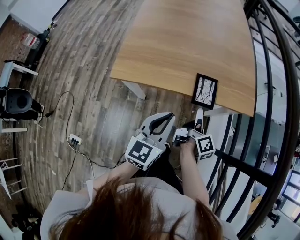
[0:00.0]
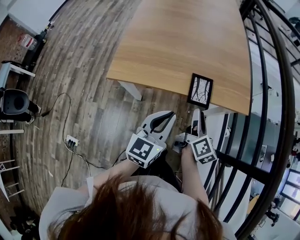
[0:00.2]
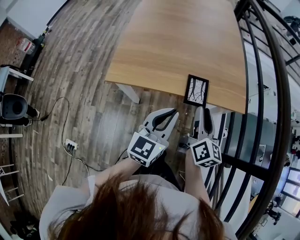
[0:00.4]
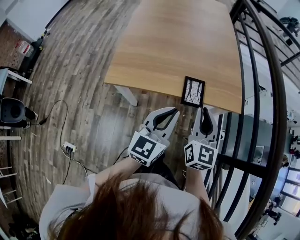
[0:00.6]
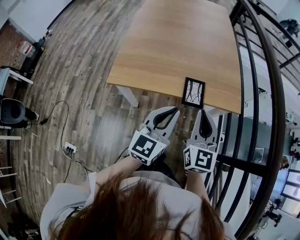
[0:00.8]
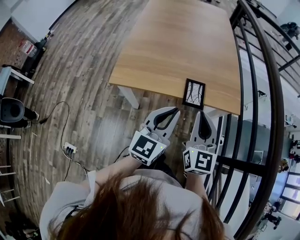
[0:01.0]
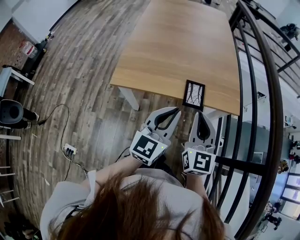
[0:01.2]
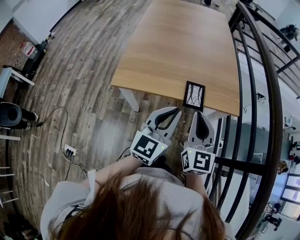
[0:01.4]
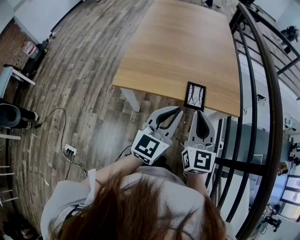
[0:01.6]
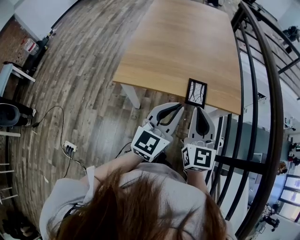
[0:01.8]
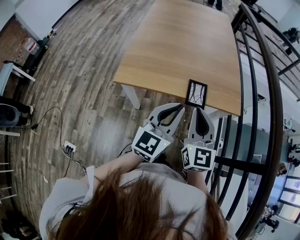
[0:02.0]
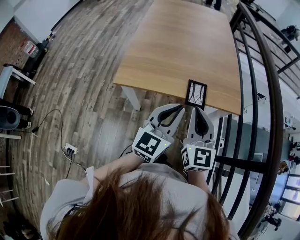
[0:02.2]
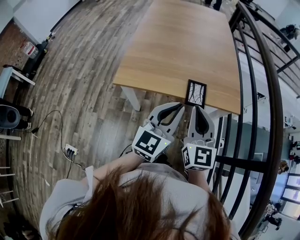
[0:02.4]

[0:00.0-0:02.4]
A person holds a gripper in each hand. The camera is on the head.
0:00.0 to 0:01.2: The right gripper travels upward by approximately 20 cm, rotates around the line of its fingers by some 80 degrees, counterclockwise from behind, and closes up, while the left gripper is displaced upward by some 10 cm.
0:01.2 to 0:02.4: The grippers move only a little.

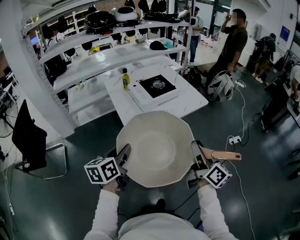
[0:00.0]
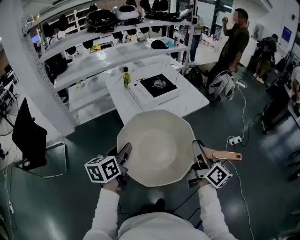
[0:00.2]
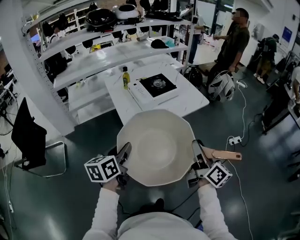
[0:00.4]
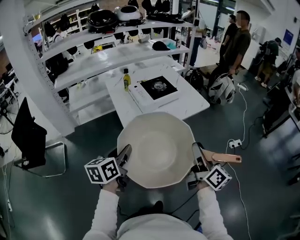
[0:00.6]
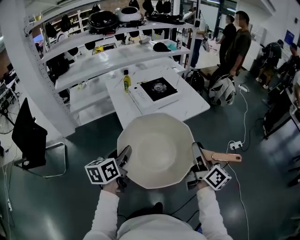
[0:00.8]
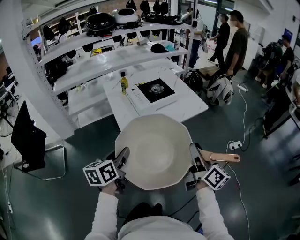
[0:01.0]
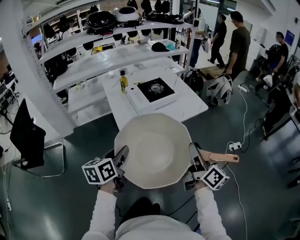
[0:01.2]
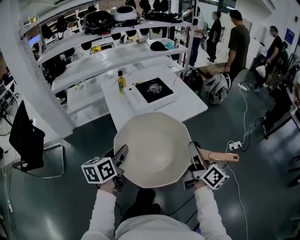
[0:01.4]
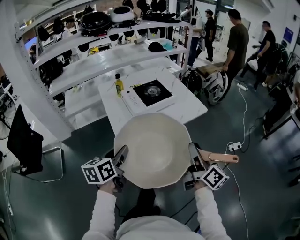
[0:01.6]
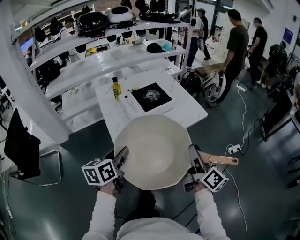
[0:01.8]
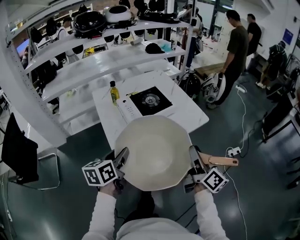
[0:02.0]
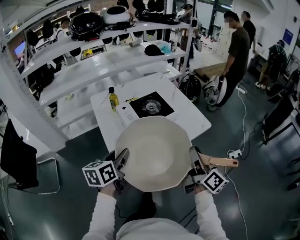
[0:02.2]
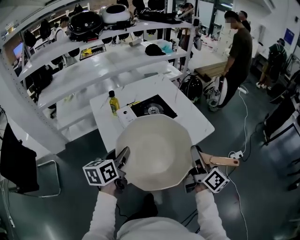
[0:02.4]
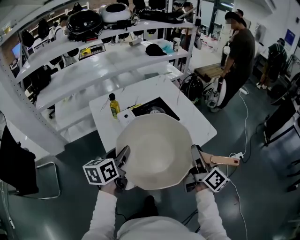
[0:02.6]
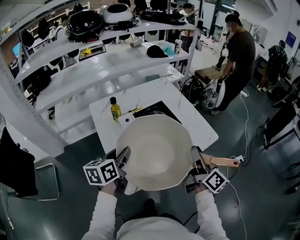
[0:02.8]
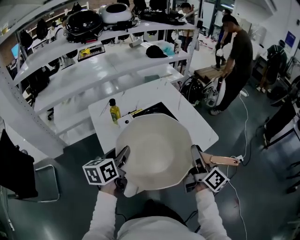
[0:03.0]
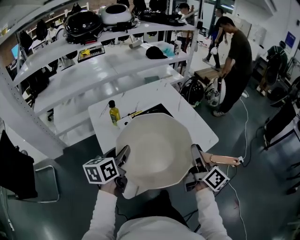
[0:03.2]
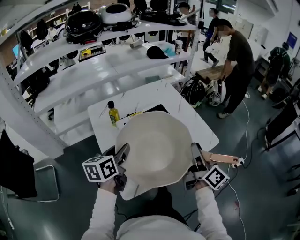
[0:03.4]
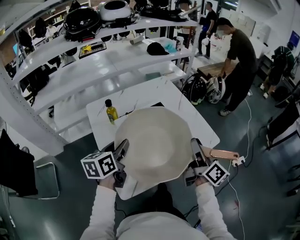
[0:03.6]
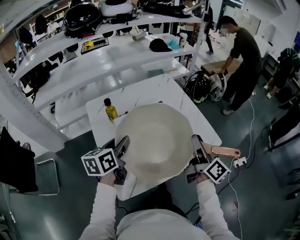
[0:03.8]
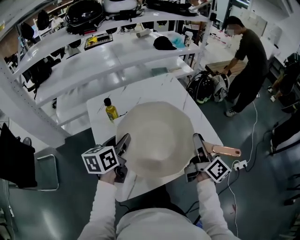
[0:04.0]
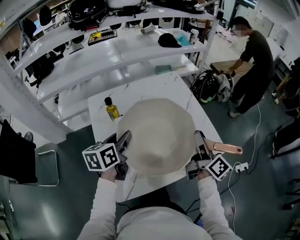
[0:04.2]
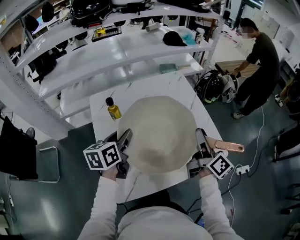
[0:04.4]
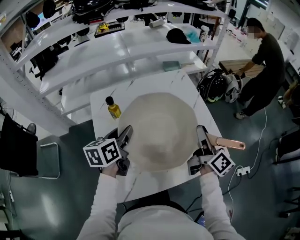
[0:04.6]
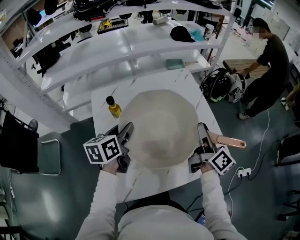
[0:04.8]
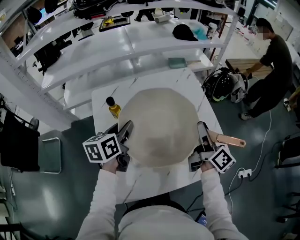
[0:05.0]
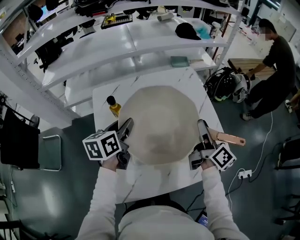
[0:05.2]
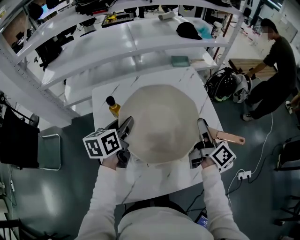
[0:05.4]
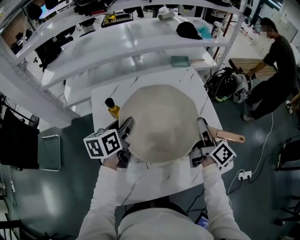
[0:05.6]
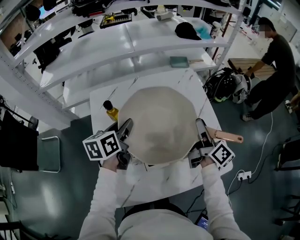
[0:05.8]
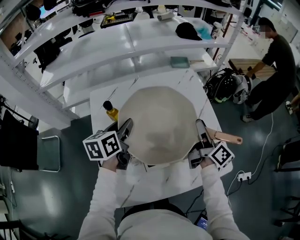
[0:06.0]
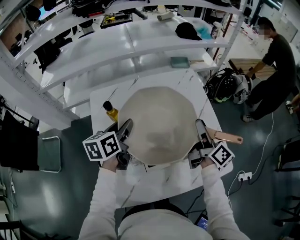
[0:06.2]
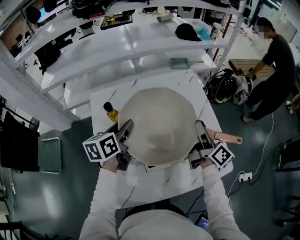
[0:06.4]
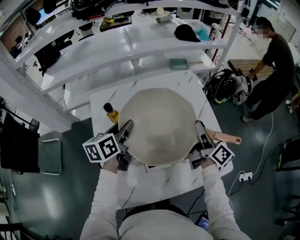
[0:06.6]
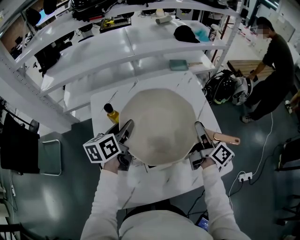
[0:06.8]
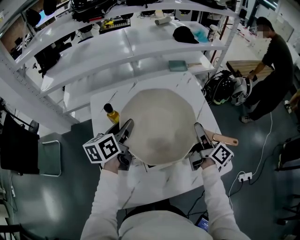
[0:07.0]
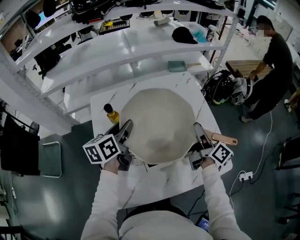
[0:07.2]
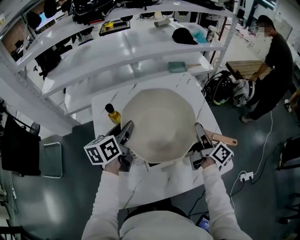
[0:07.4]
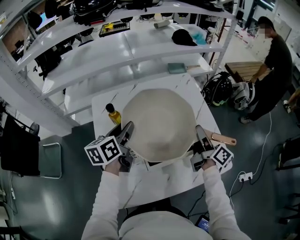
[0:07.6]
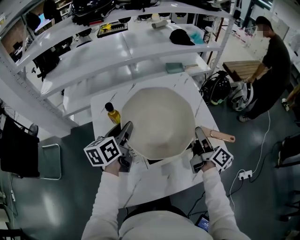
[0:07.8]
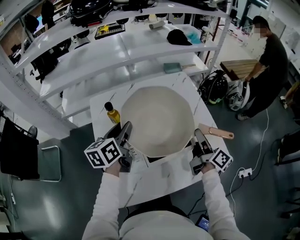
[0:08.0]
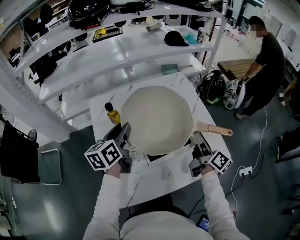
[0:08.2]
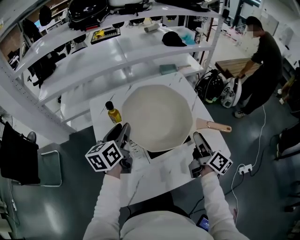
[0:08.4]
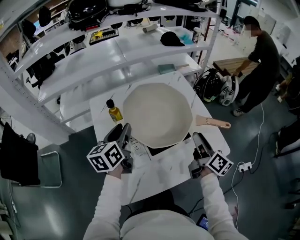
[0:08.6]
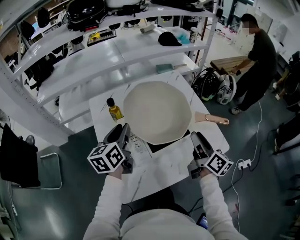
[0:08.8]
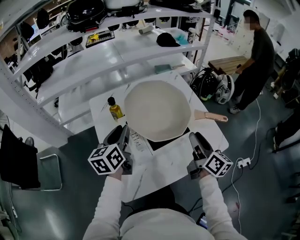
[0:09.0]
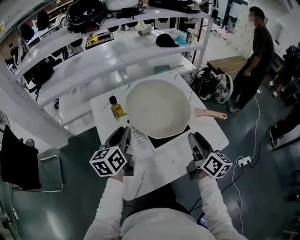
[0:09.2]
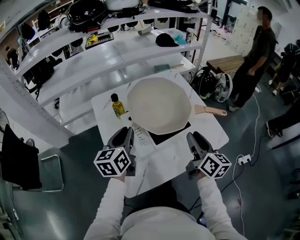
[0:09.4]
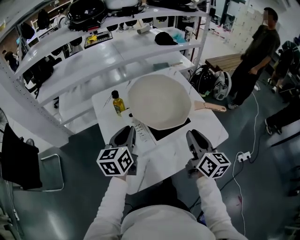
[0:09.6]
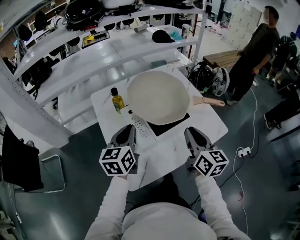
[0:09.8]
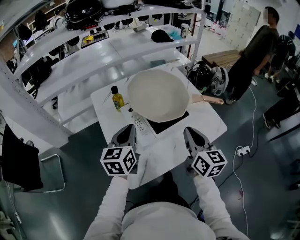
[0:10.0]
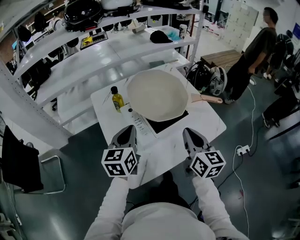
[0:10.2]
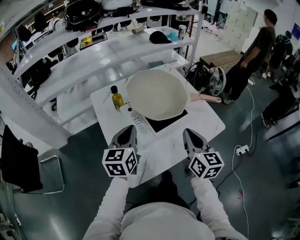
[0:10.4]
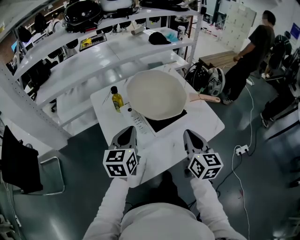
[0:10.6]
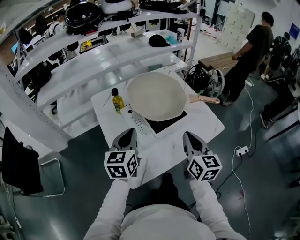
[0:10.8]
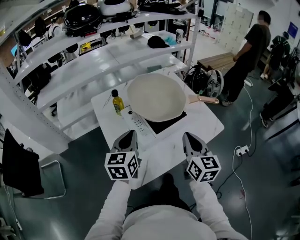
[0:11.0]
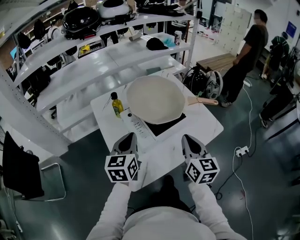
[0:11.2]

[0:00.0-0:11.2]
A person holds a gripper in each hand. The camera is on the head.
0:00.0 to 0:01.6: Both grippers move forward, roughly 10 cm.
0:01.6 to 0:03.2: The grippers both shift forward by about 30 cm.
0:03.2 to 0:04.8: The two grippers go roughly 20 cm forward.
0:04.8 to 0:06.4: The grippers both shift forward by approximately 5 cm.
0:06.4 to 0:08.0: The right gripper shifts some 5 cm backward.
0:08.0 to 0:09.6: The left gripper is displaced backward by about 10 cm, and closes up. The right gripper is displaced backward and to the left by roughly 20 cm, swivels approximately 40 degrees, and closes.
0:09.6 to 0:11.2: The two grippers go roughly 5 cm backward. The right gripper closes its fingers.

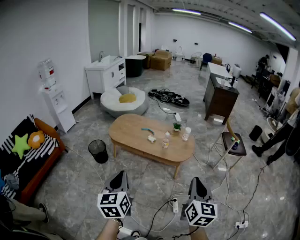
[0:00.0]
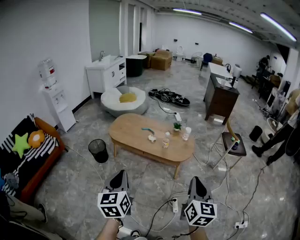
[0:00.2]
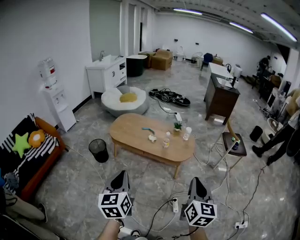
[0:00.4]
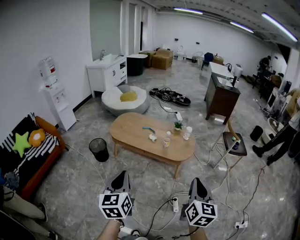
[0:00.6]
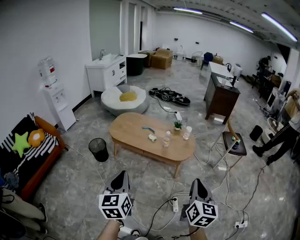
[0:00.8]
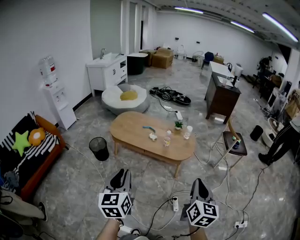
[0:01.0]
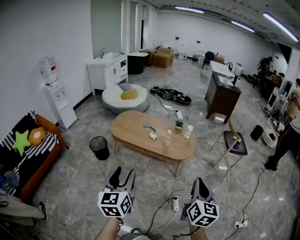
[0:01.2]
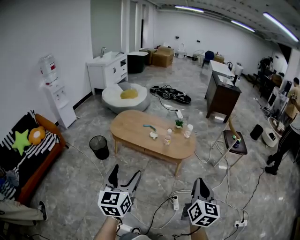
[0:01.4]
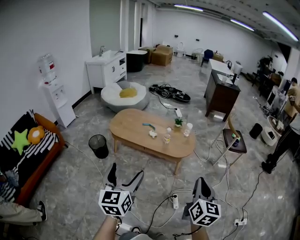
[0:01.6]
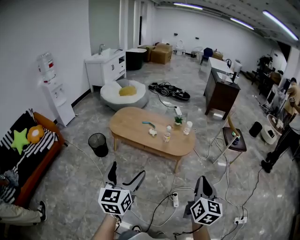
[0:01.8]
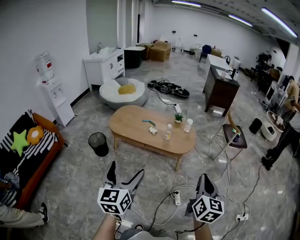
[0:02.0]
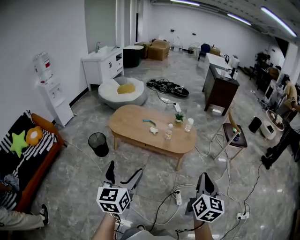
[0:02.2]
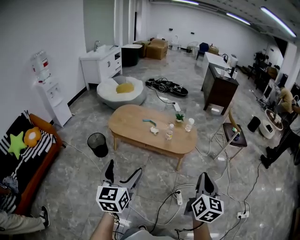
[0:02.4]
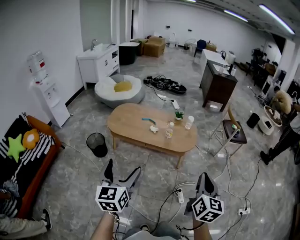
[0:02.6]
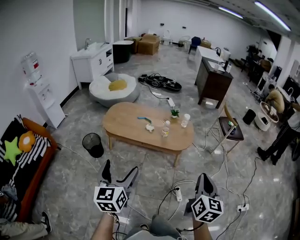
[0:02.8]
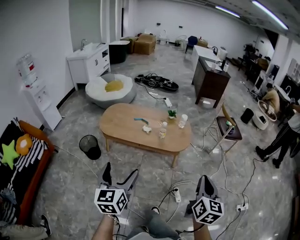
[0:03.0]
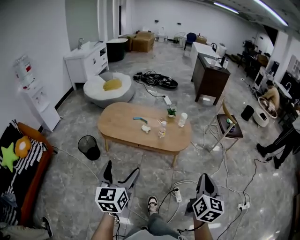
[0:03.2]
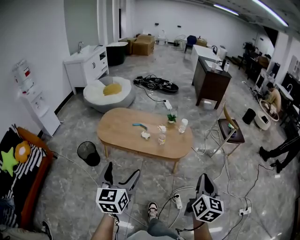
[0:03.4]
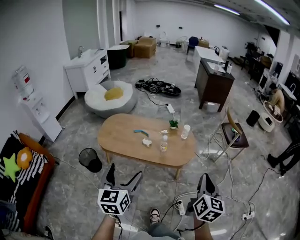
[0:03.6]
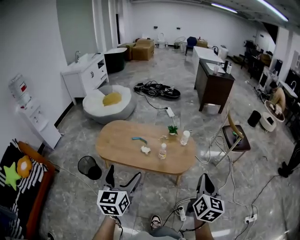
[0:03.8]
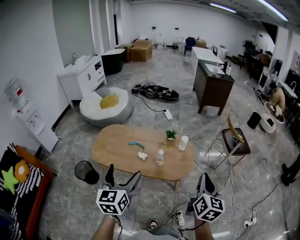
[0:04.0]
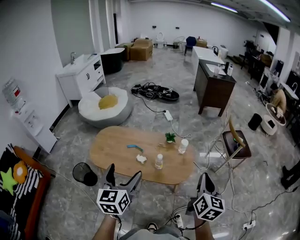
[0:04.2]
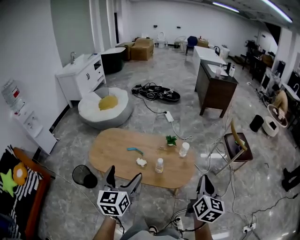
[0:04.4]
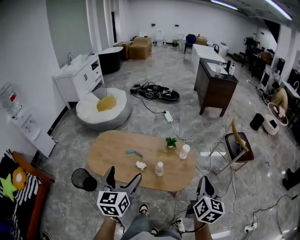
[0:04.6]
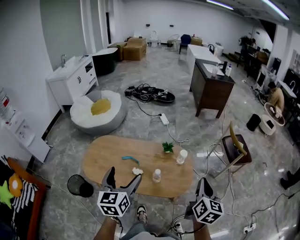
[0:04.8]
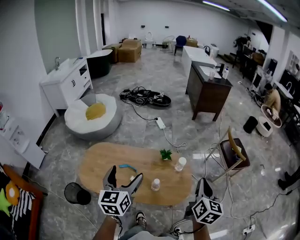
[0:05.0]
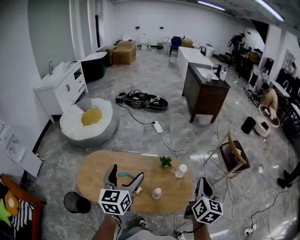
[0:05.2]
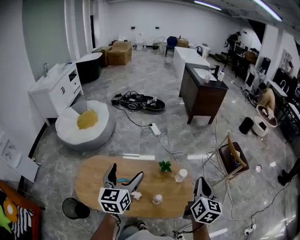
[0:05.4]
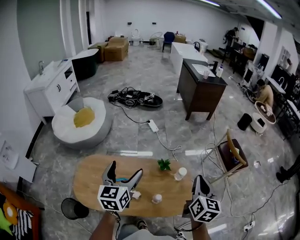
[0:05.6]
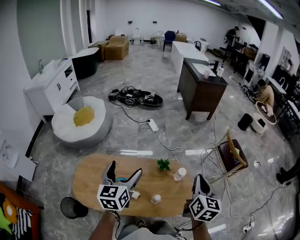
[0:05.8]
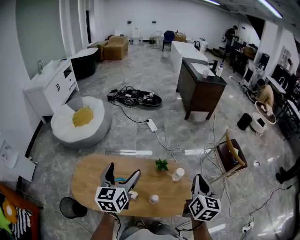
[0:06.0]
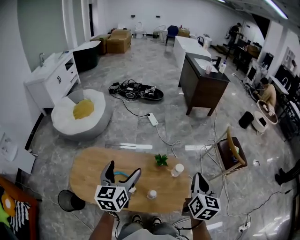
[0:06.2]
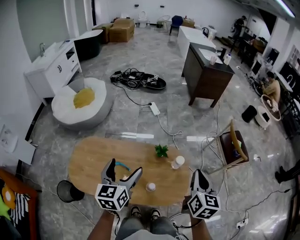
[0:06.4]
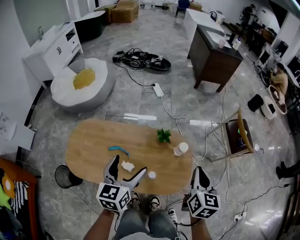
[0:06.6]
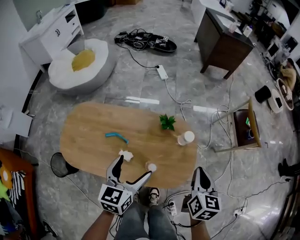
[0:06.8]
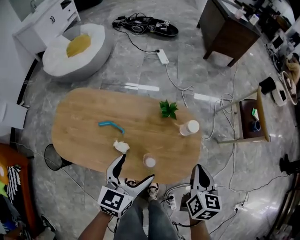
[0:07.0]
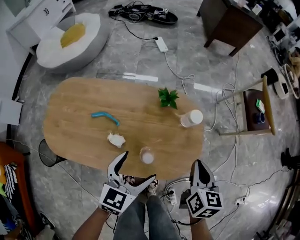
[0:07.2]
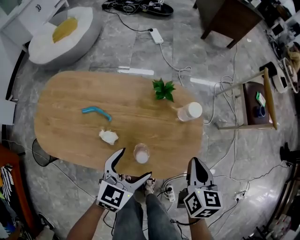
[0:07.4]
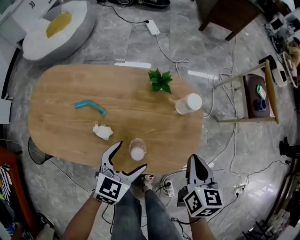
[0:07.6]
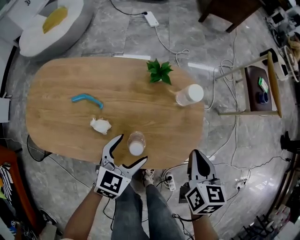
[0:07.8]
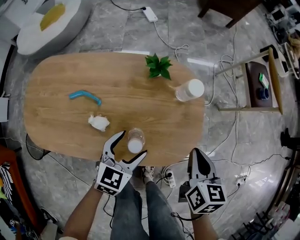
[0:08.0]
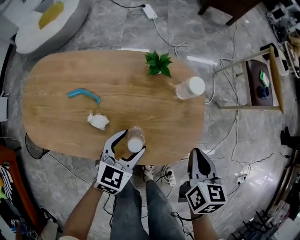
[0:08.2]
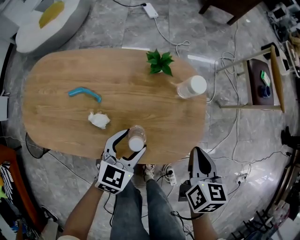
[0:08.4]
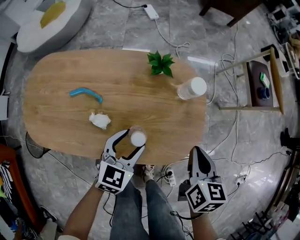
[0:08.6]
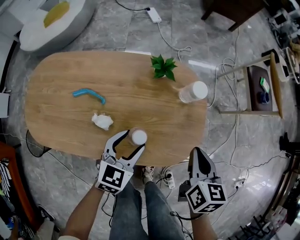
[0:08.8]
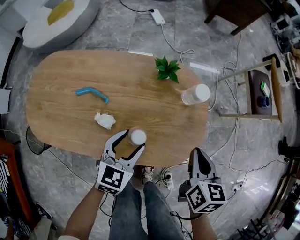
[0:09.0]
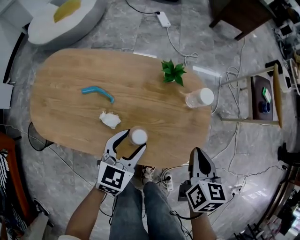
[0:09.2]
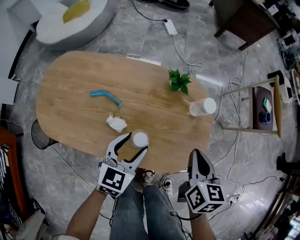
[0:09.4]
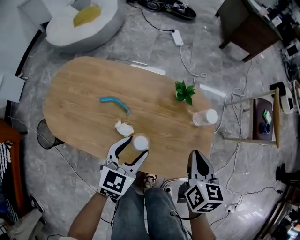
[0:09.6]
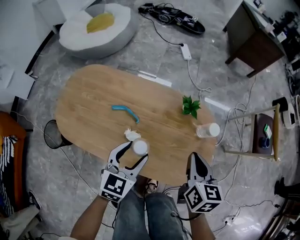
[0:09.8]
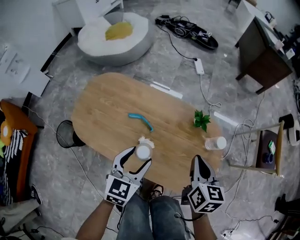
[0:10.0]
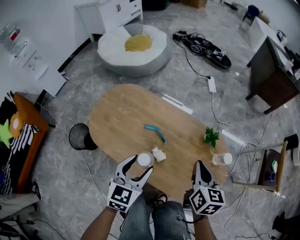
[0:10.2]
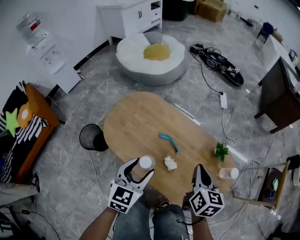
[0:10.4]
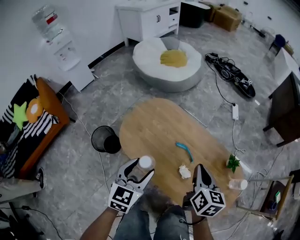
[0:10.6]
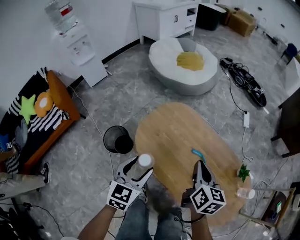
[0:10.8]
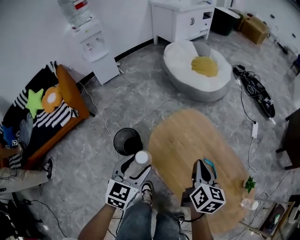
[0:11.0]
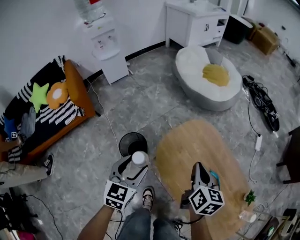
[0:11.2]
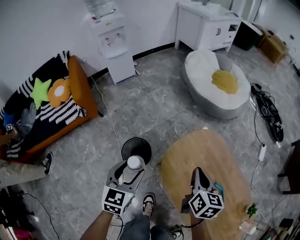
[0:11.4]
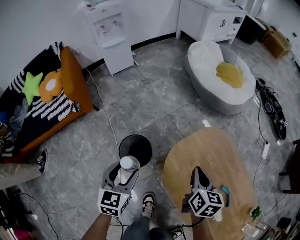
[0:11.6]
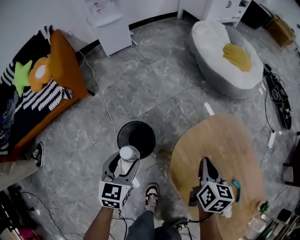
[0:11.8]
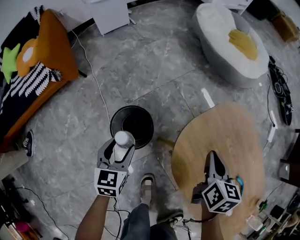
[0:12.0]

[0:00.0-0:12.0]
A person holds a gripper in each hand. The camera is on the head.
0:00.0 to 0:01.6: The left gripper opens.
0:01.6 to 0:03.0: The left gripper shifts some 10 cm to the left and forward.
0:03.0 to 0:04.4: The grippers both shift forward by some 35 cm.
0:04.4 to 0:06.0: Both grippers travel together forward, approximately 30 cm.
0:06.0 to 0:07.6: The right gripper goes roughly 35 cm downward, and swivels some 30 degrees. The left gripper travels downward and to the right by some 40 cm, and swivels roughly 30 degrees.
0:07.6 to 0:09.0: The left gripper closes its fingers.
0:09.0 to 0:10.4: The right gripper shifts by roughly 30 cm, and changes its angle by approximately 30 degrees; the left gripper ends up some 30 cm from where it was, and changes its angle by some 40 degrees.
0:10.4 to 0:12.0: Both grippers are carried roughly 50 cm. The right gripper turns by some 30 degrees. Meanwhile the left gripper swivels approximately 40 degrees.
